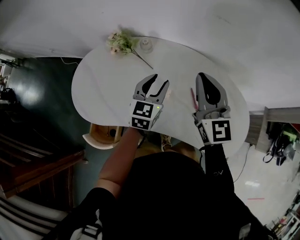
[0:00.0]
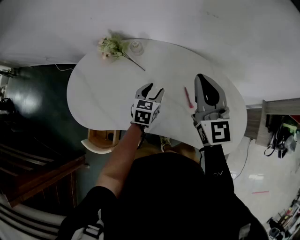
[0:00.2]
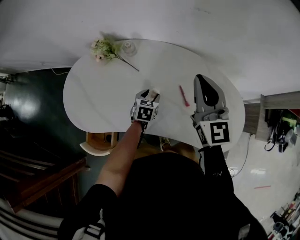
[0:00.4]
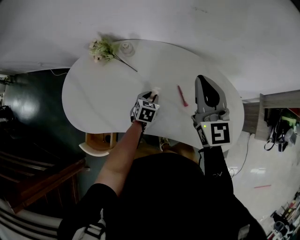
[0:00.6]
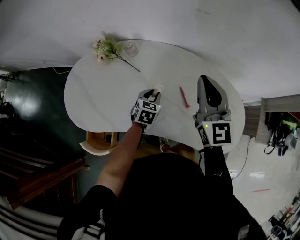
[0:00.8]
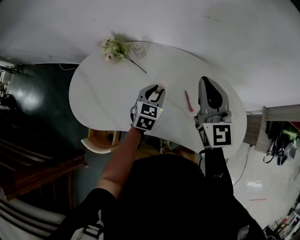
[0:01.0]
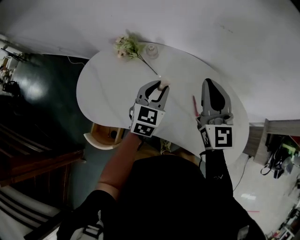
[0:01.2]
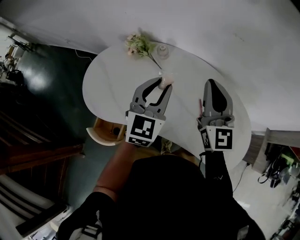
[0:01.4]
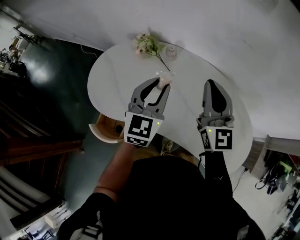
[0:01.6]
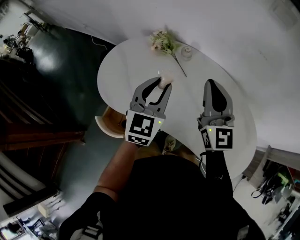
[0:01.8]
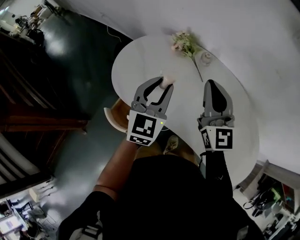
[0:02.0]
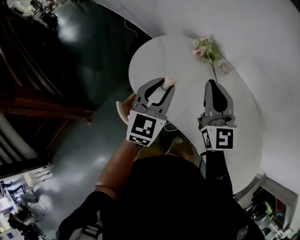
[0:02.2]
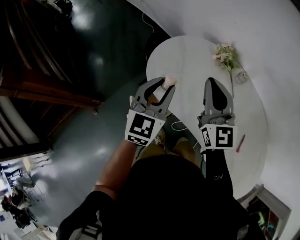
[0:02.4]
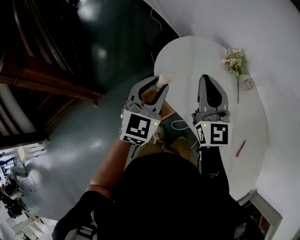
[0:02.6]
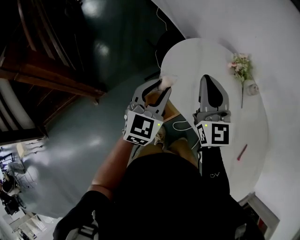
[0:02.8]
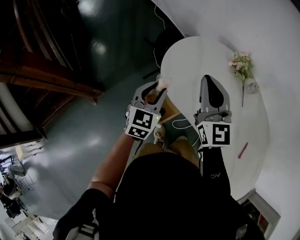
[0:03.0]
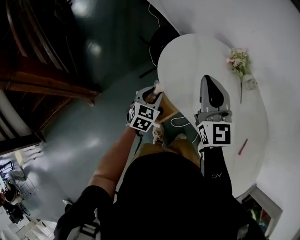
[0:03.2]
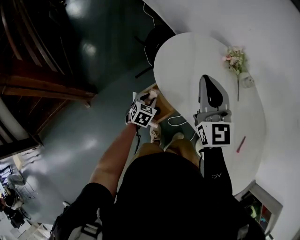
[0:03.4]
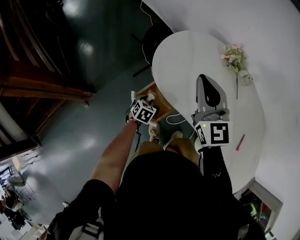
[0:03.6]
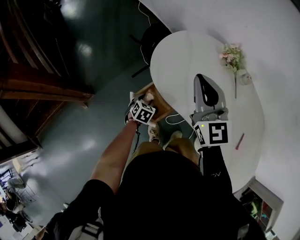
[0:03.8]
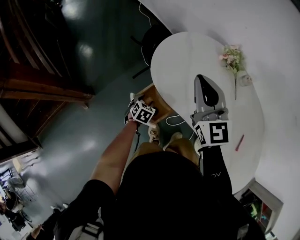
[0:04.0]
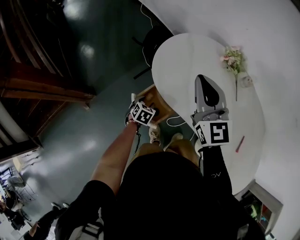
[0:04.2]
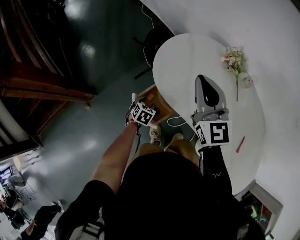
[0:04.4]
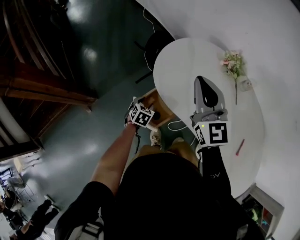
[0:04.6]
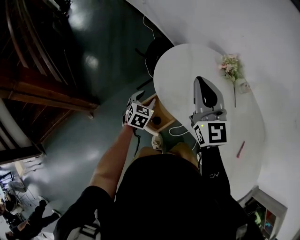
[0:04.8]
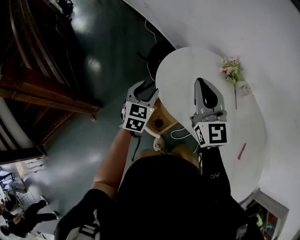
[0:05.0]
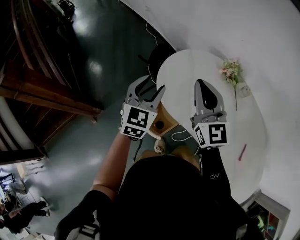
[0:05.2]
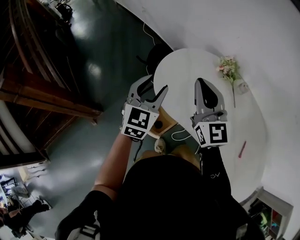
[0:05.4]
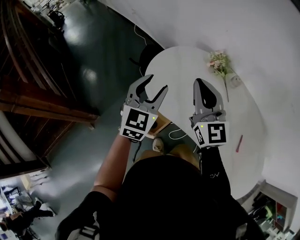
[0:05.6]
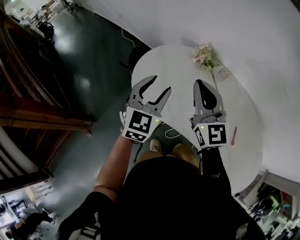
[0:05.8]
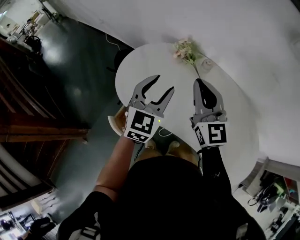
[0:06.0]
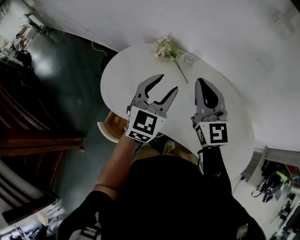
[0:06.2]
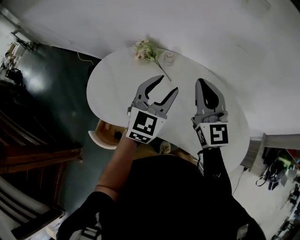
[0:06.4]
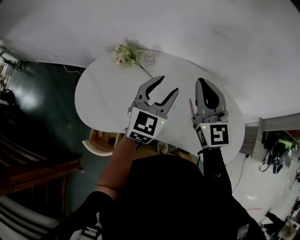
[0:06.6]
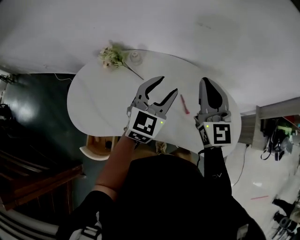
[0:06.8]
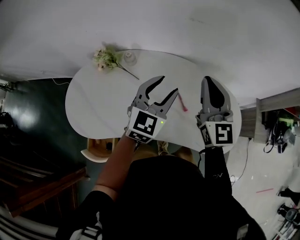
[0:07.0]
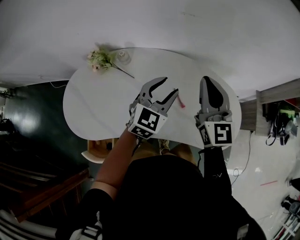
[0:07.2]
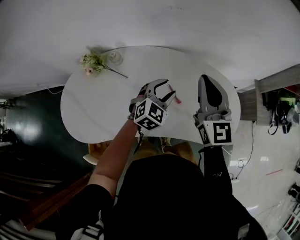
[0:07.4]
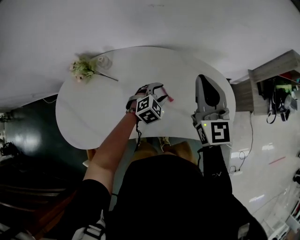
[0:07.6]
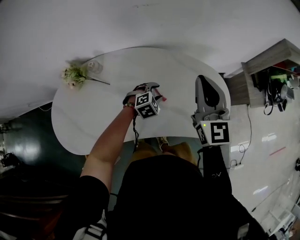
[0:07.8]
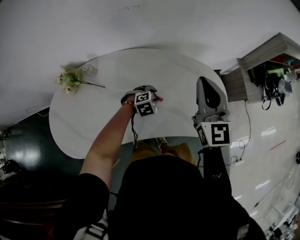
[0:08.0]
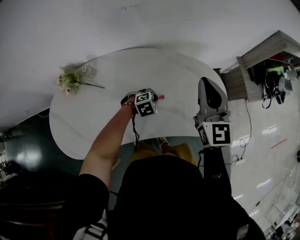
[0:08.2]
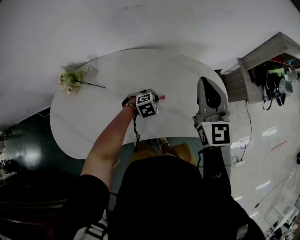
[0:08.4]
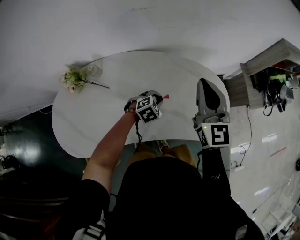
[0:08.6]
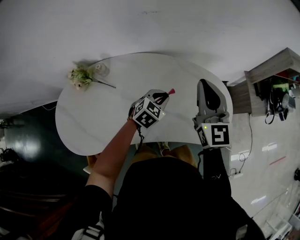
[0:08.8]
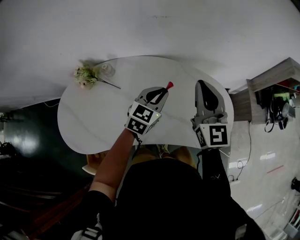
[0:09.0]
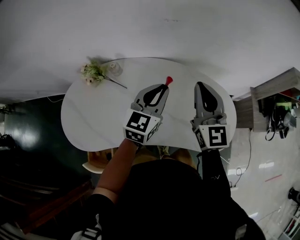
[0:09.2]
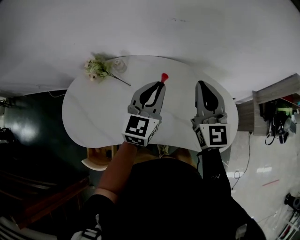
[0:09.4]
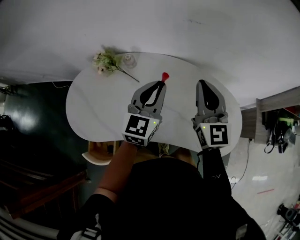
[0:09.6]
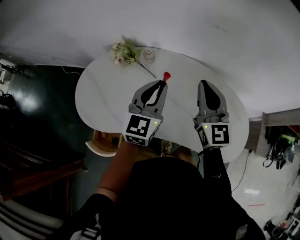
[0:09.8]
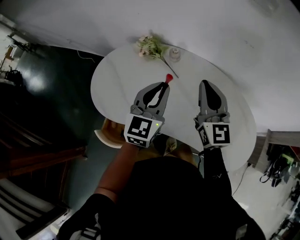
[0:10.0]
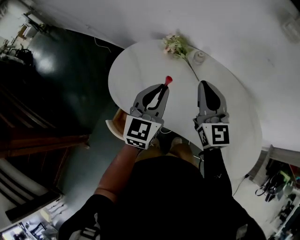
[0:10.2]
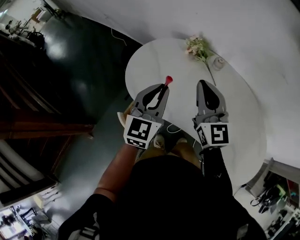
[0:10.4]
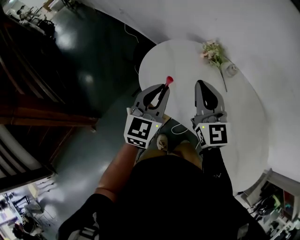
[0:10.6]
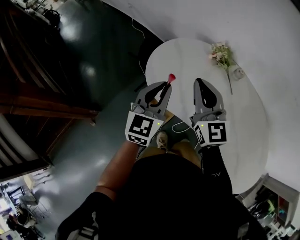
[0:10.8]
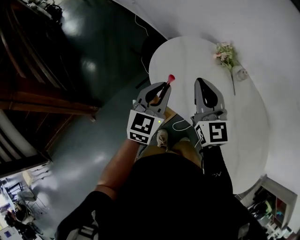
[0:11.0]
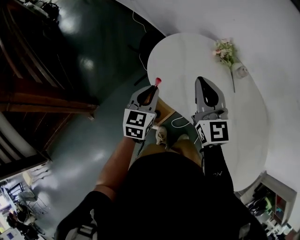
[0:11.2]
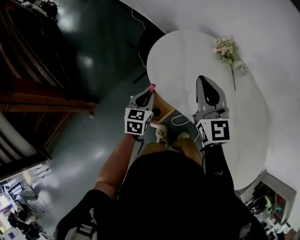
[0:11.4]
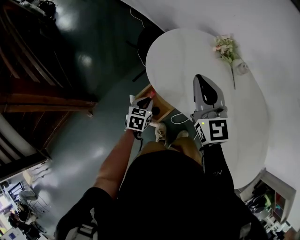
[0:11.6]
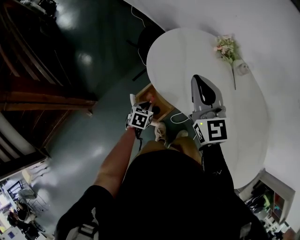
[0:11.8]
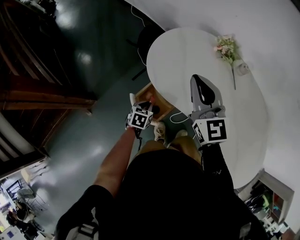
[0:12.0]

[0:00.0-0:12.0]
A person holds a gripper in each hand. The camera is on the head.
0:00.0 to 0:01.6: The right gripper travels to the right and back again, about 5 cm each way, while the left gripper shifts approximately 10 cm upward and to the left.
0:01.6 to 0:03.0: The right gripper ends up roughly 40 cm from where it was, and changes its angle by roughly 40 degrees; the left gripper ends up some 40 cm from where it was, and changes its angle by about 30 degrees.
0:03.0 to 0:04.4: The left gripper goes about 25 cm downward, points its fingers some 40 degrees further downward, and opens up.
0:04.4 to 0:06.0: The left gripper is displaced upward and to the right by some 50 cm, and angles its fingers upward, by about 50 degrees. The right gripper goes roughly 20 cm to the right, and turns by roughly 20 degrees.
0:06.0 to 0:07.6: The left gripper moves some 50 cm, and tips its fingers downward by roughly 40 degrees. The right gripper ends up about 40 cm from where it was, and turns by approximately 50 degrees.
0:07.6 to 0:09.0: The left gripper moves upward, roughly 15 cm, rotates about 40 degrees, and closes its fingers.
0:09.0 to 0:10.4: The two grippers travel together, some 40 cm. The right gripper swivels about 40 degrees. The left gripper changes its angle by about 60 degrees.
0:10.4 to 0:12.0: The left gripper is displaced downward and to the left by about 40 cm, and tips its fingers downward by roughly 50 degrees, while the right gripper is displaced to the left by about 15 cm.

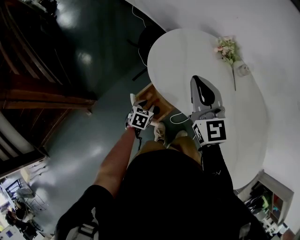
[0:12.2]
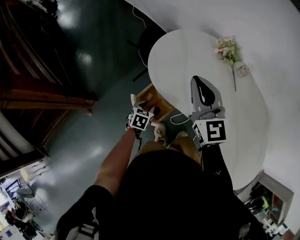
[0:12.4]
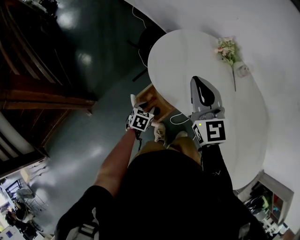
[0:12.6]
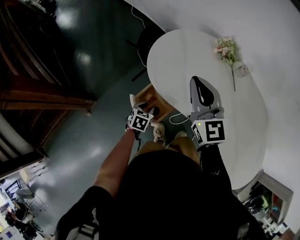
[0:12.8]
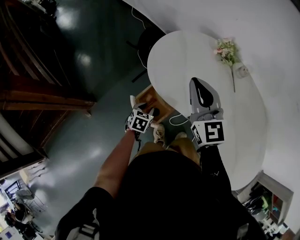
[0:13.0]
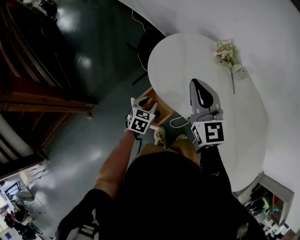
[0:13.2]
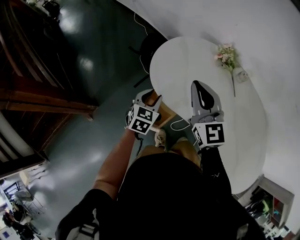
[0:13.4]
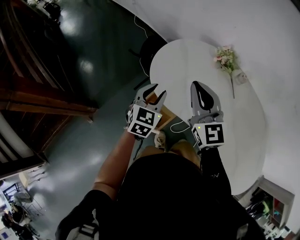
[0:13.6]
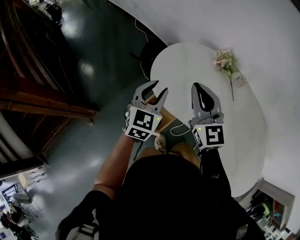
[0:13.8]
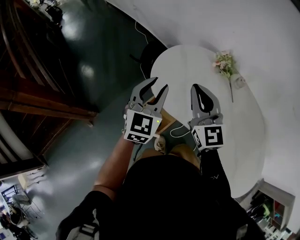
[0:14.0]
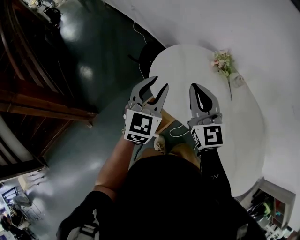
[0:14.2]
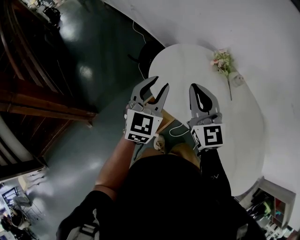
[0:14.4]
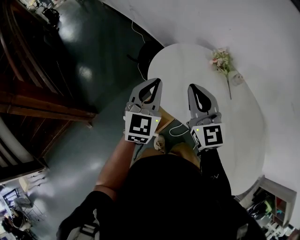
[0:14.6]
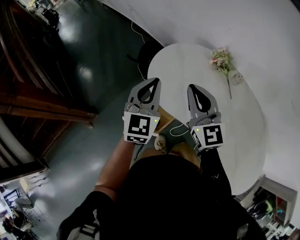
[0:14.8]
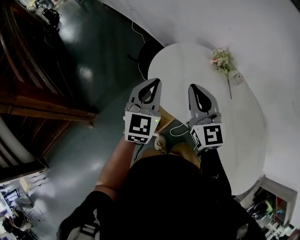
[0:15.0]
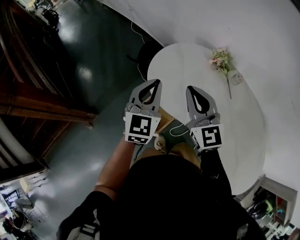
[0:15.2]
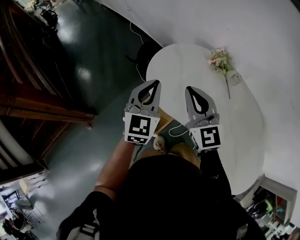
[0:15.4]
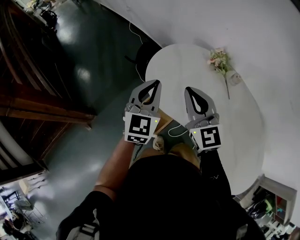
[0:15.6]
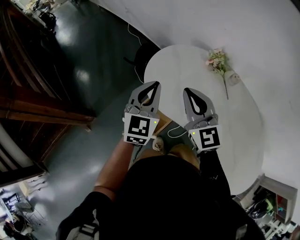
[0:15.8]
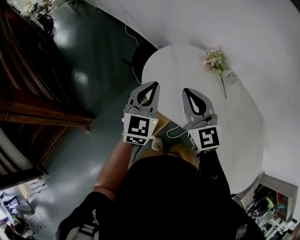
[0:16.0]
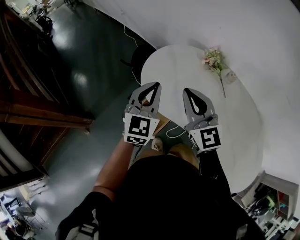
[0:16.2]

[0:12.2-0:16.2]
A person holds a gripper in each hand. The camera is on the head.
0:12.2 to 0:13.6: The left gripper is displaced upward by about 20 cm, and rotates approximately 30 degrees.
0:13.6 to 0:14.8: The left gripper travels upward by roughly 10 cm, rotates roughly 20 degrees, and closes.
0:14.8 to 0:16.2: The grippers make only small movements.

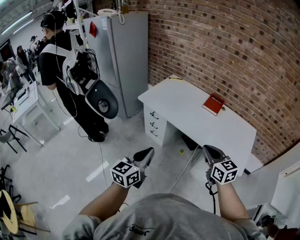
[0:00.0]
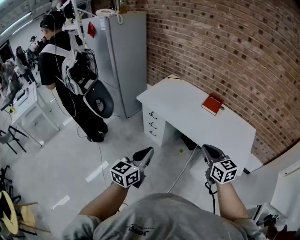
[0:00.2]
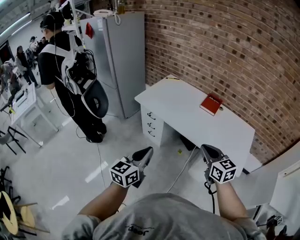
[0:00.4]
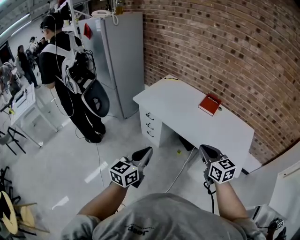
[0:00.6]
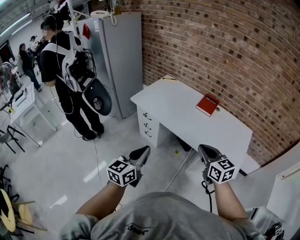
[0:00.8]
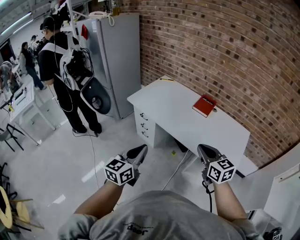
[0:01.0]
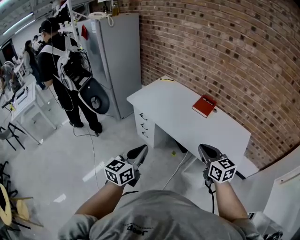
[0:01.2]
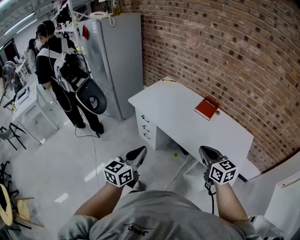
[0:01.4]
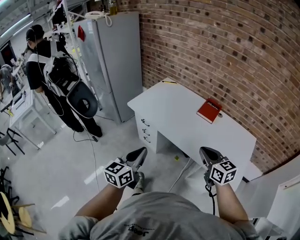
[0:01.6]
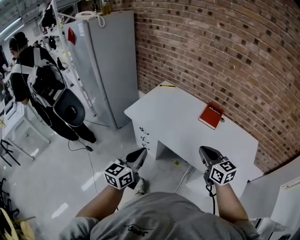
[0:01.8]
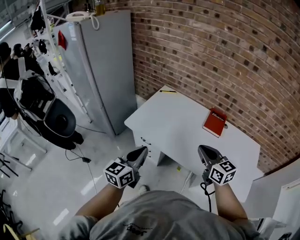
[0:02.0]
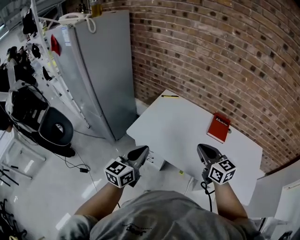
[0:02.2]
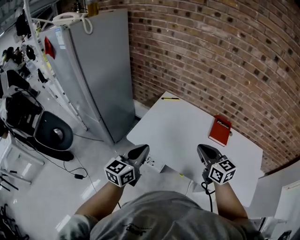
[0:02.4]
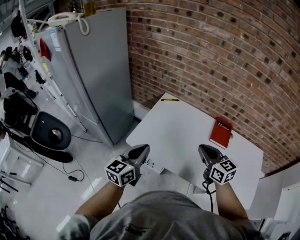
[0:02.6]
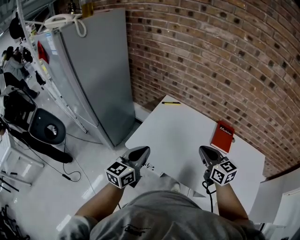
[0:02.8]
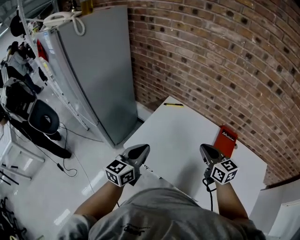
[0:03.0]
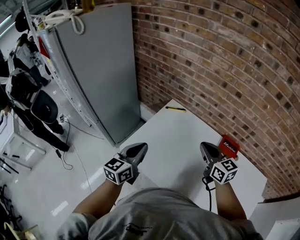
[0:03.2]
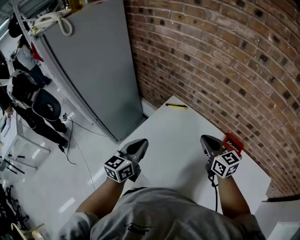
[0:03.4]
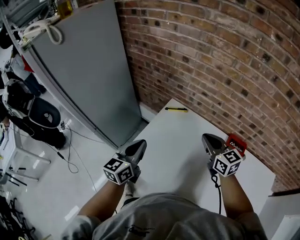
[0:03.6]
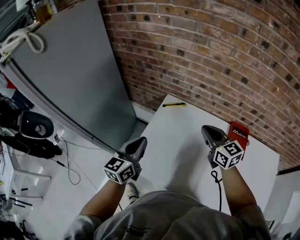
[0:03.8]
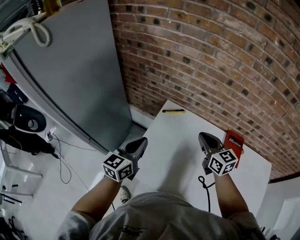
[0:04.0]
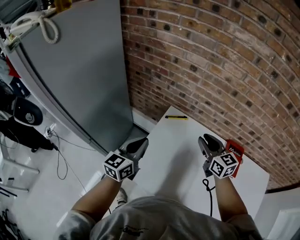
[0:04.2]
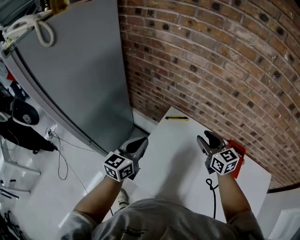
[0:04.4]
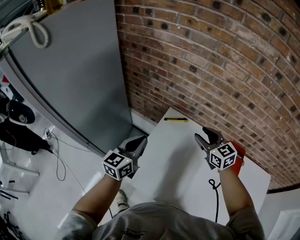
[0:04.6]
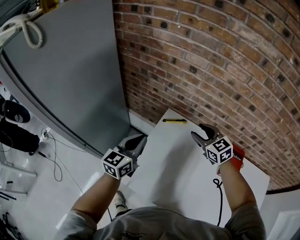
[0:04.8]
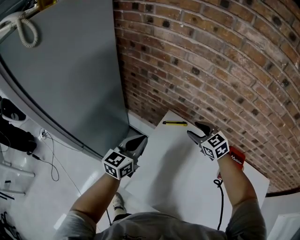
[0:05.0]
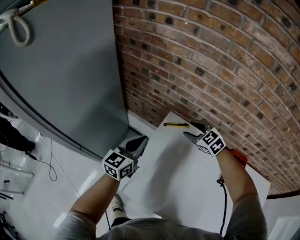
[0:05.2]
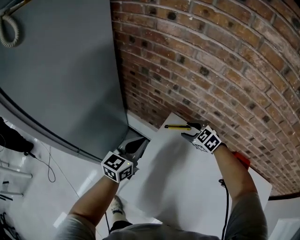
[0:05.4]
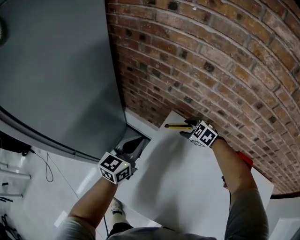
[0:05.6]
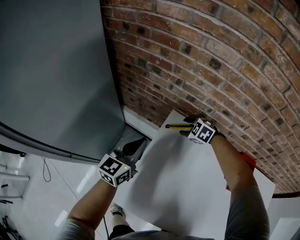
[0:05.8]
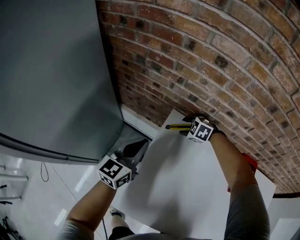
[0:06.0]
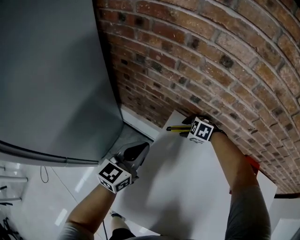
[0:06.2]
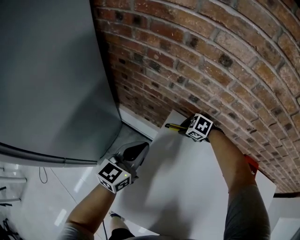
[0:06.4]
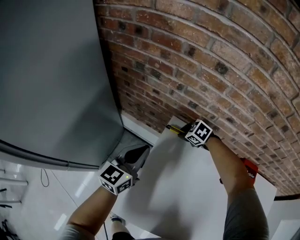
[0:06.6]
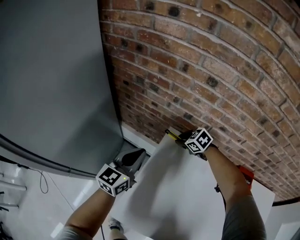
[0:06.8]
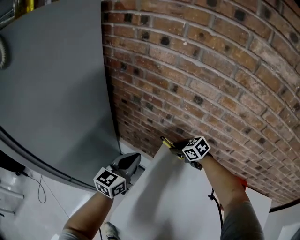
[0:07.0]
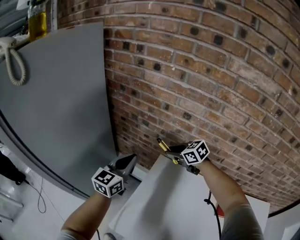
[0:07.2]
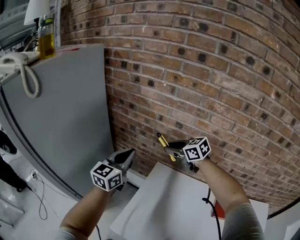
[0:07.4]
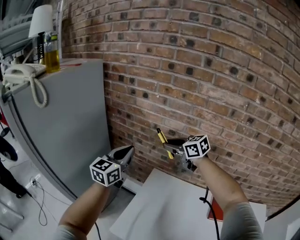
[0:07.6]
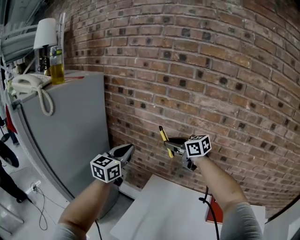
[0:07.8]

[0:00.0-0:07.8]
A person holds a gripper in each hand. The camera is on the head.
0:00.0 to 0:01.6: Both grippers travel together forward and to the right, some 15 cm.
0:01.6 to 0:03.2: The two grippers travel together, forward, roughly 50 cm.
0:03.2 to 0:04.6: Both grippers move forward, roughly 20 cm. The right gripper opens up.
0:04.6 to 0:06.2: The left gripper moves forward and downward, roughly 20 cm; the right gripper heads downward and forward, covering roughly 35 cm, and points its fingers about 50 degrees further downward.
0:06.2 to 0:07.8: The grippers both shift upward by about 40 cm. The right gripper points its fingers about 50 degrees further upward, and closes up.
